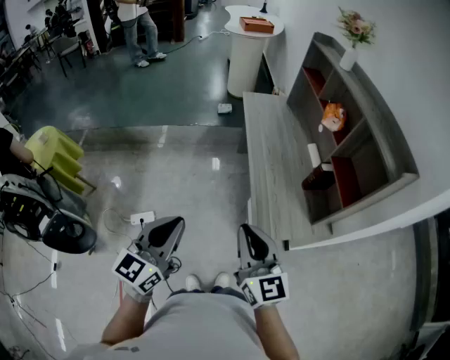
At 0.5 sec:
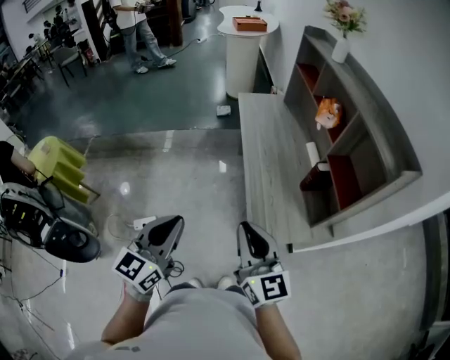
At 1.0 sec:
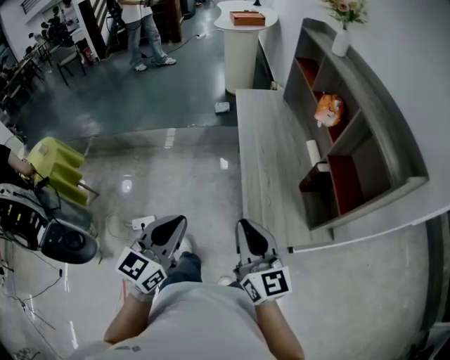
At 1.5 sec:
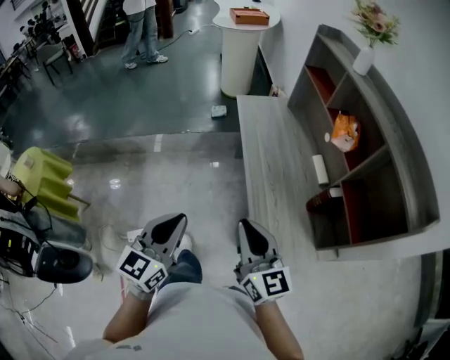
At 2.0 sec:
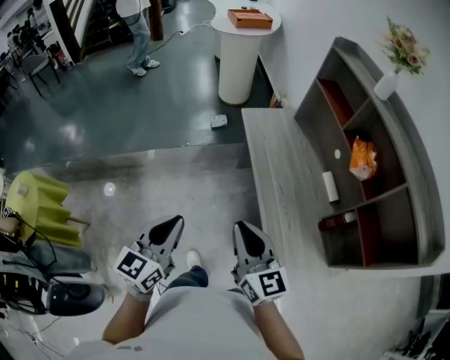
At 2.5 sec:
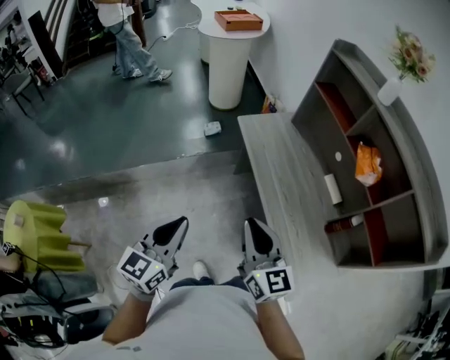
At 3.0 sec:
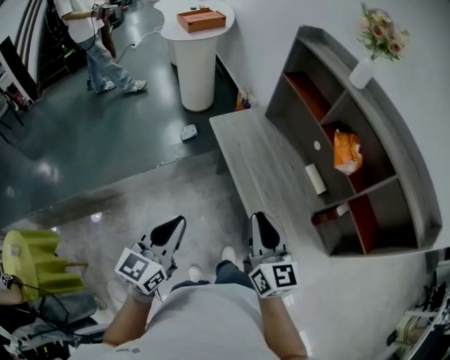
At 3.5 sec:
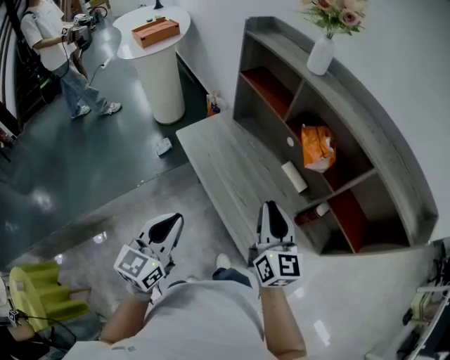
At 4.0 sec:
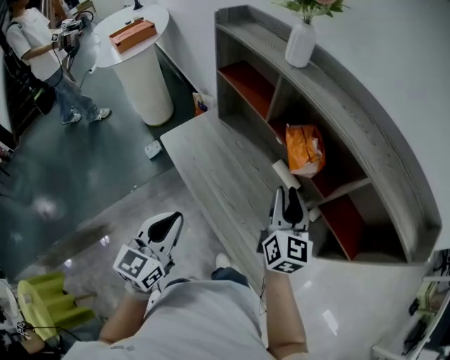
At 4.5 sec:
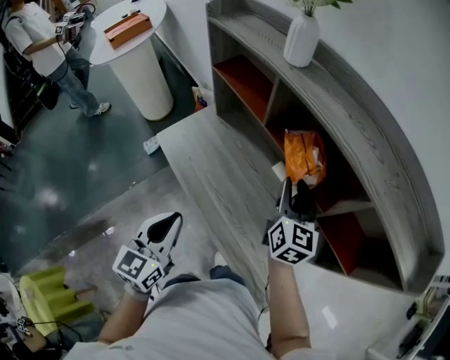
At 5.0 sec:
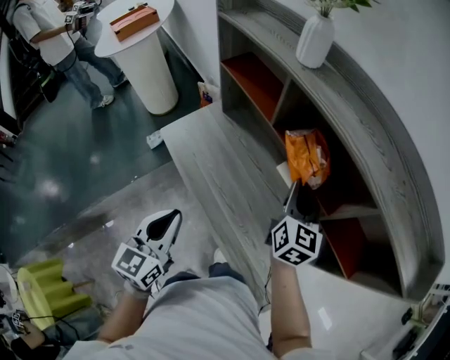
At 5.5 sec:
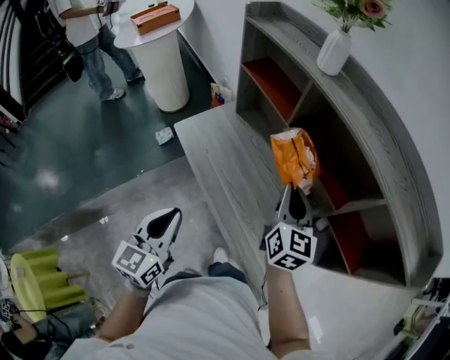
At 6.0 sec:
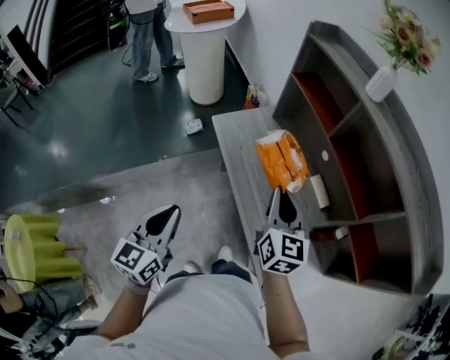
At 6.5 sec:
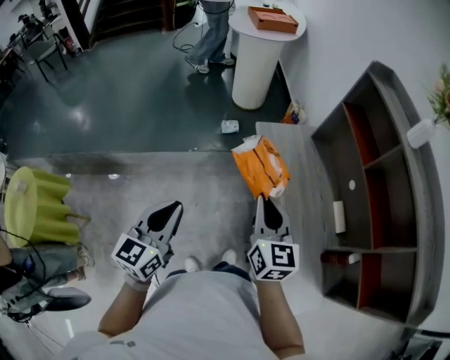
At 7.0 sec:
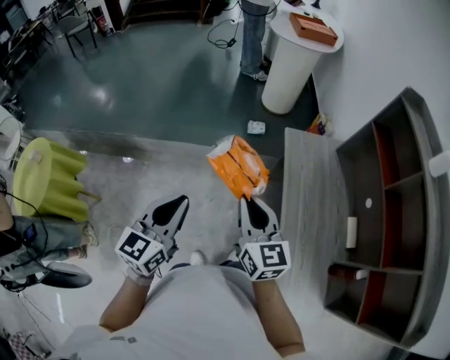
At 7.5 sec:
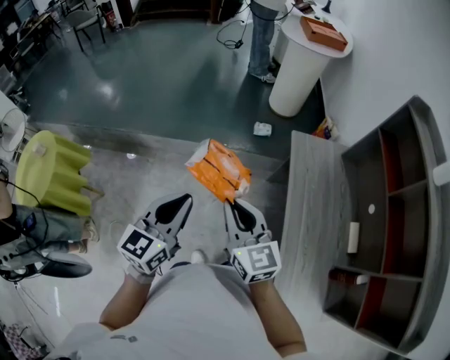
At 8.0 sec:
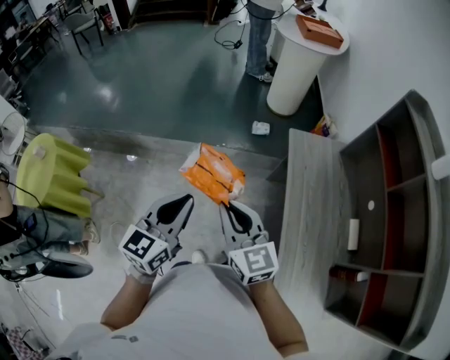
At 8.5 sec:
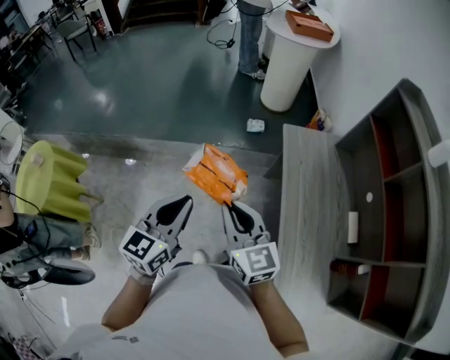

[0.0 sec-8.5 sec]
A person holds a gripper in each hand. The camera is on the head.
0.0 sec to 2.0 sec: The grippers both shift forward by about 35 cm.
2.0 sec to 4.0 sec: The left gripper shifts by about 35 cm, and rotates about 30 degrees. Meanwhile the right gripper shifts by some 40 cm, and swivels approximately 50 degrees.
4.0 sec to 6.5 sec: The right gripper shifts by about 35 cm, turns by about 40 degrees, and closes up. The left gripper changes place by some 30 cm, and rotates about 30 degrees.
6.5 sec to 8.5 sec: The right gripper heads to the left, covering about 15 cm, and turns by some 30 degrees.

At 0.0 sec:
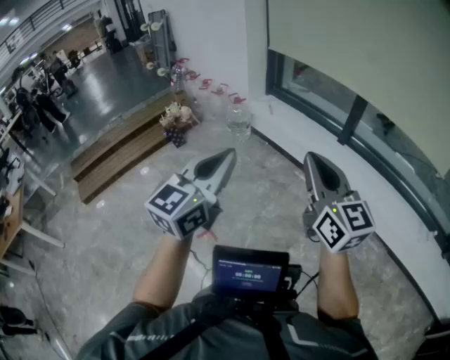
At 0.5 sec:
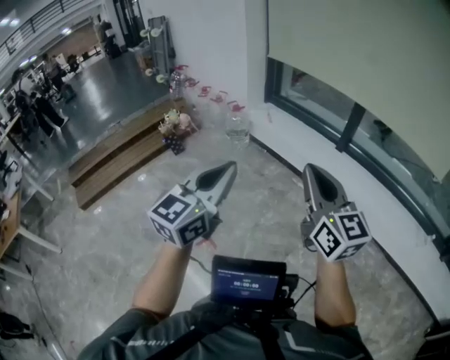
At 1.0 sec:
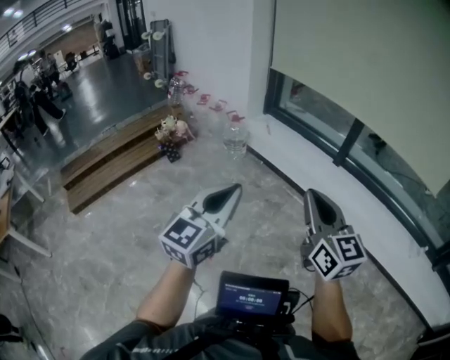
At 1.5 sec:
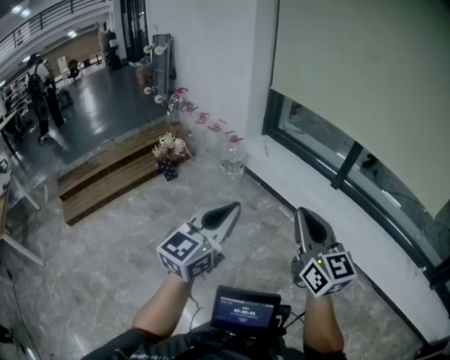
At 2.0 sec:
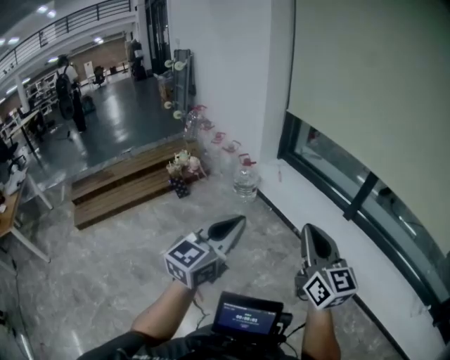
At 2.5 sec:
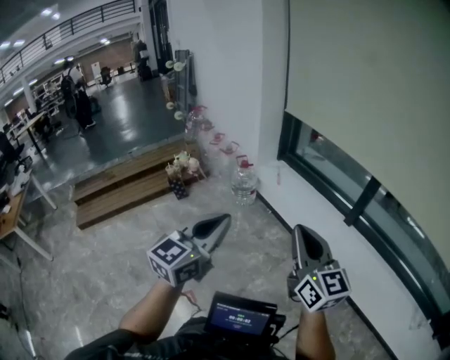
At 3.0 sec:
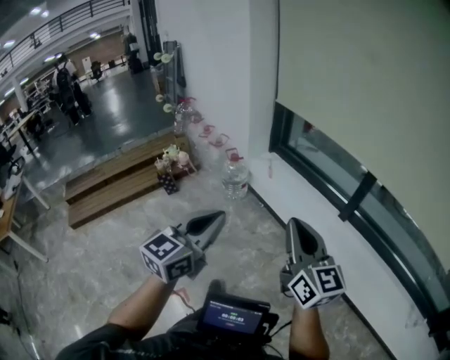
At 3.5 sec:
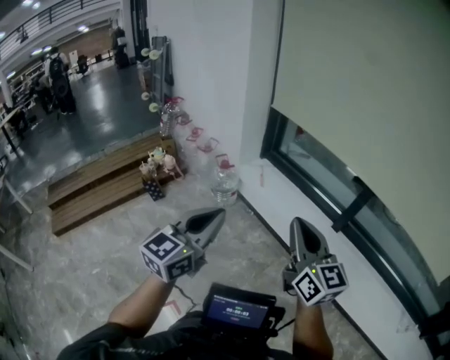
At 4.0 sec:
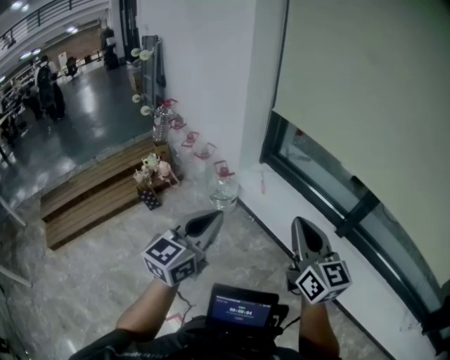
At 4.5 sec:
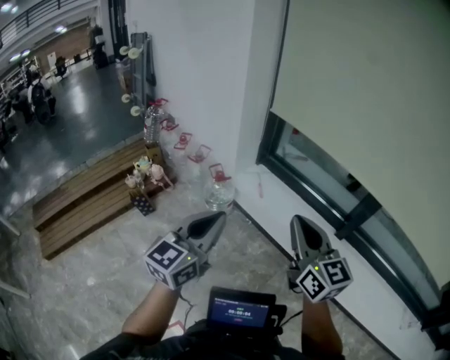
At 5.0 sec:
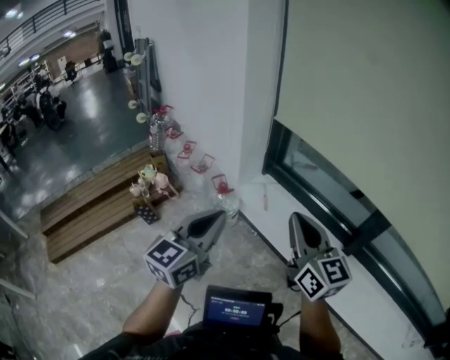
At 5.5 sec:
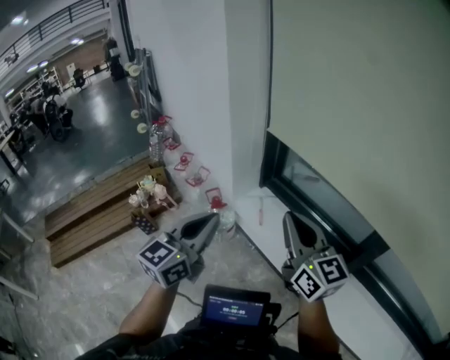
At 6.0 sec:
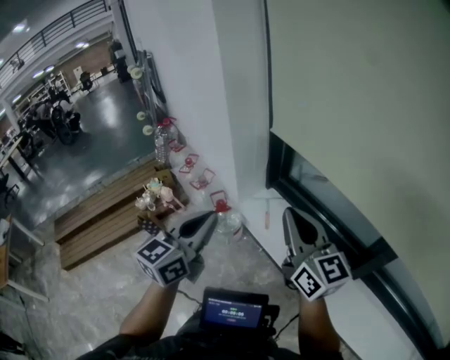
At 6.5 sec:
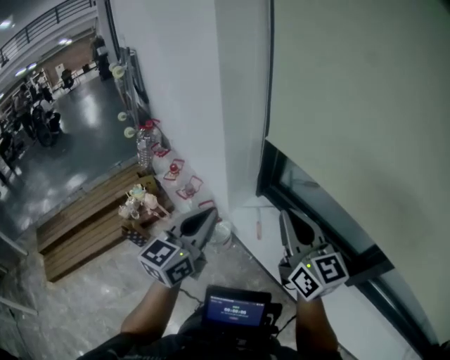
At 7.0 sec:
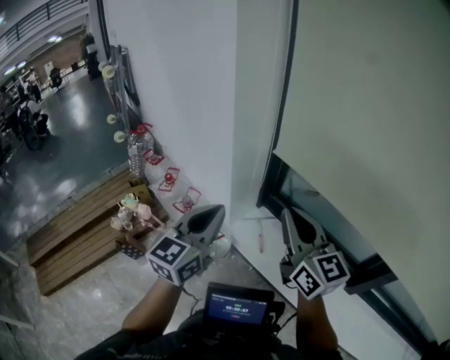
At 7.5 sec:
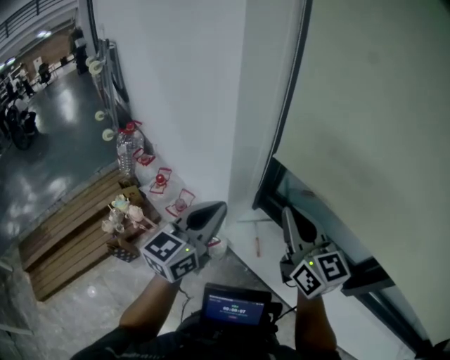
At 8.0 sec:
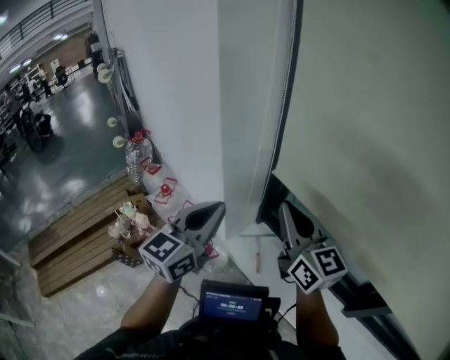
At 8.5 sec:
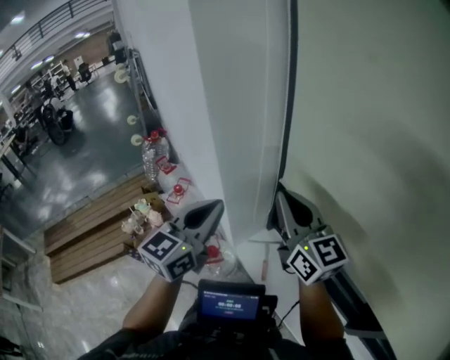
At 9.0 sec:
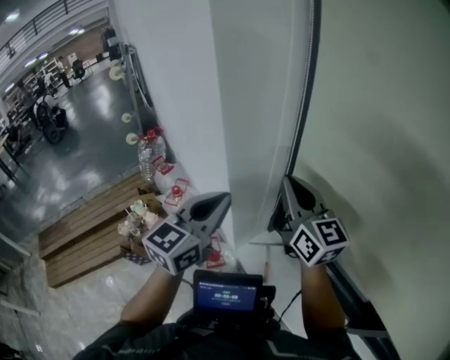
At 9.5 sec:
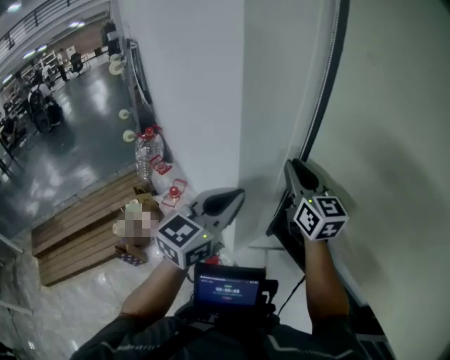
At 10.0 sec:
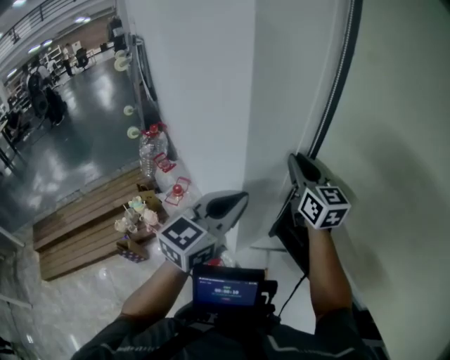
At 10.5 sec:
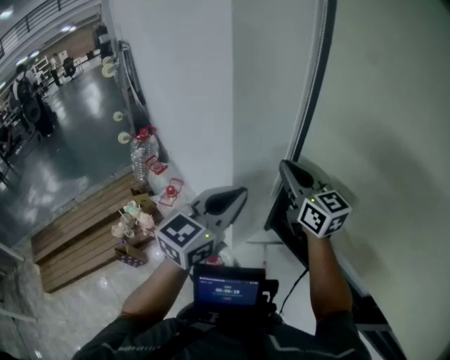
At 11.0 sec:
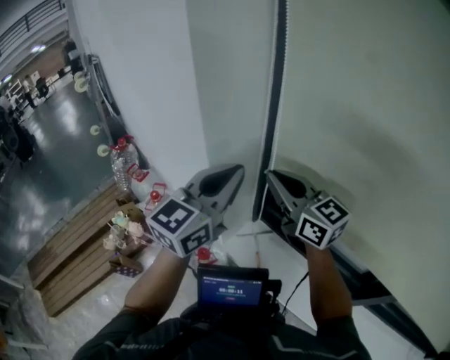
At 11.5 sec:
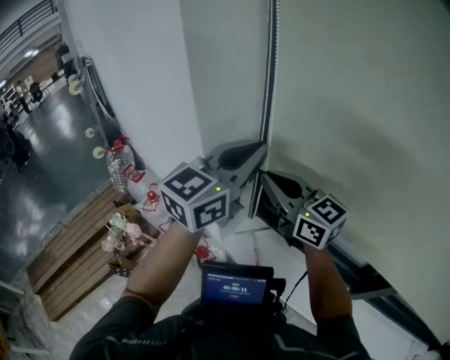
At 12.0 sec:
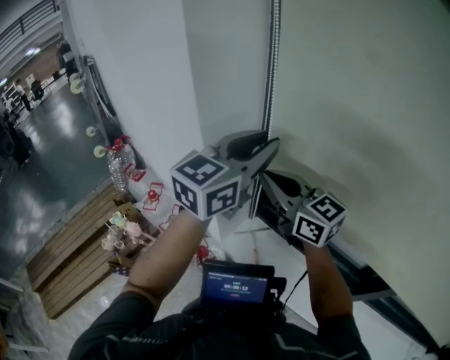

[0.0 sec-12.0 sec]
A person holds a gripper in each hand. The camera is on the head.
0.0 sec to 2.0 sec: The grippers both shift forward by approximately 10 cm.
2.0 sec to 4.0 sec: The two grippers go some 25 cm forward.
4.0 sec to 6.0 sec: Both grippers move forward, about 25 cm.
6.0 sec to 8.0 sec: Both grippers travel together forward, some 30 cm.
8.0 sec to 10.0 sec: The right gripper heads forward, covering about 25 cm, while the left gripper heads forward, covering some 10 cm.
10.0 sec to 12.0 sec: The left gripper travels to the right and upward by approximately 15 cm, and opens its fingers. The right gripper shifts roughly 15 cm backward.

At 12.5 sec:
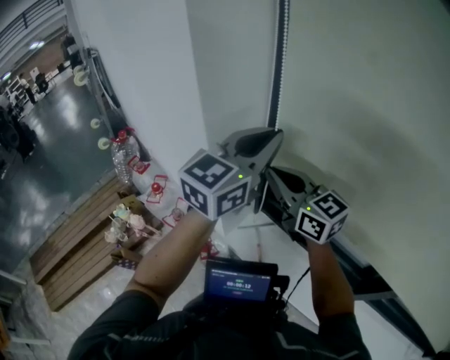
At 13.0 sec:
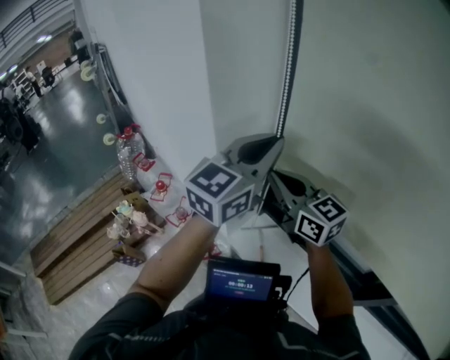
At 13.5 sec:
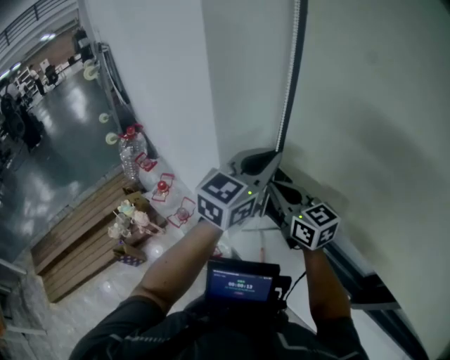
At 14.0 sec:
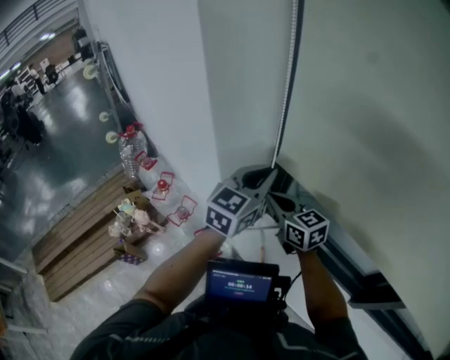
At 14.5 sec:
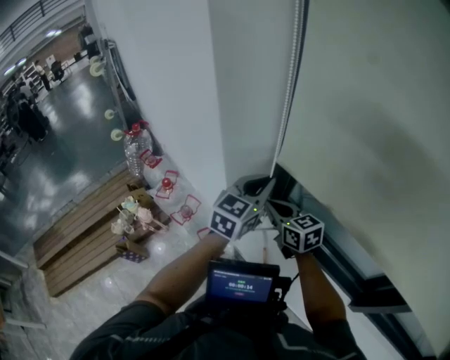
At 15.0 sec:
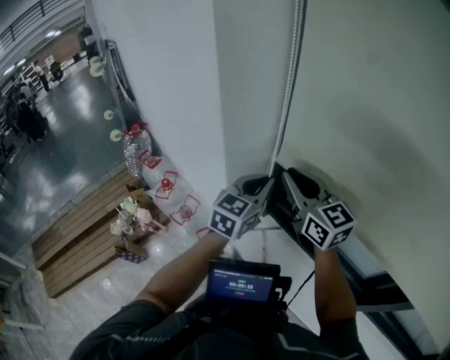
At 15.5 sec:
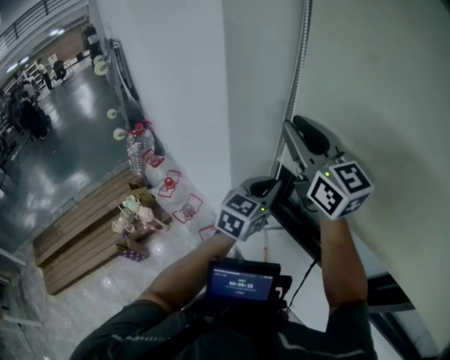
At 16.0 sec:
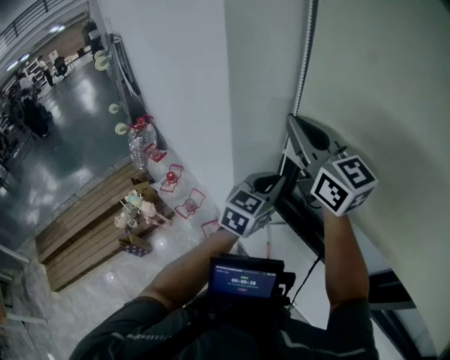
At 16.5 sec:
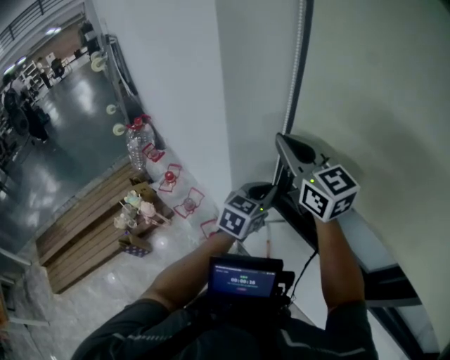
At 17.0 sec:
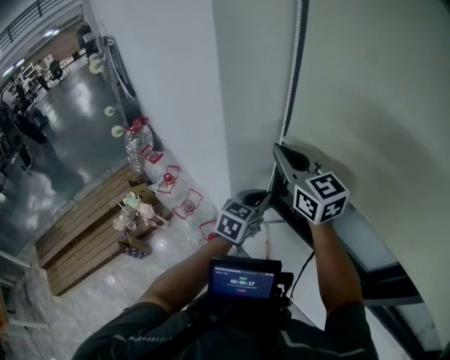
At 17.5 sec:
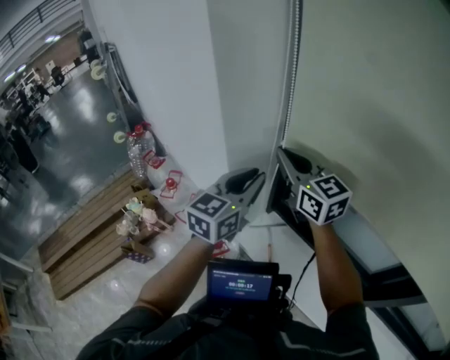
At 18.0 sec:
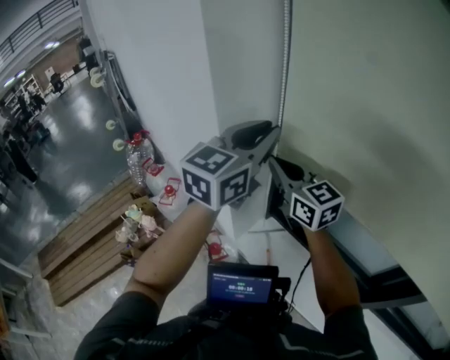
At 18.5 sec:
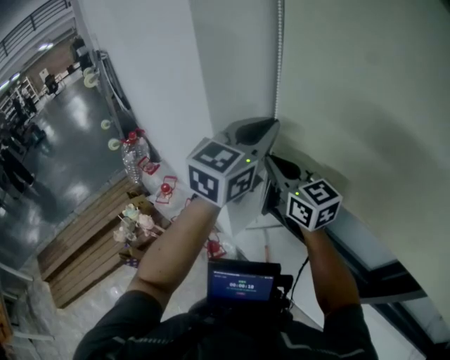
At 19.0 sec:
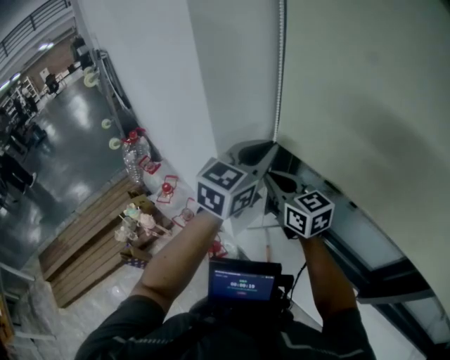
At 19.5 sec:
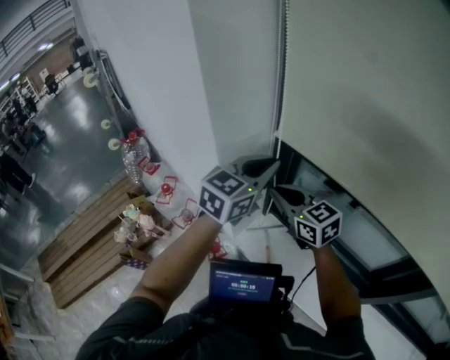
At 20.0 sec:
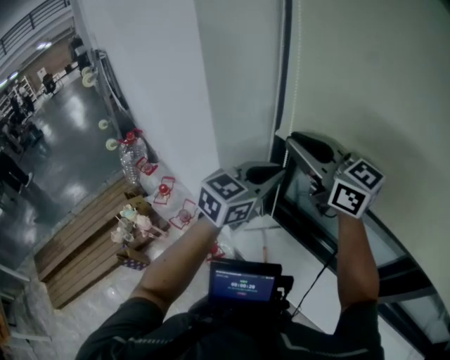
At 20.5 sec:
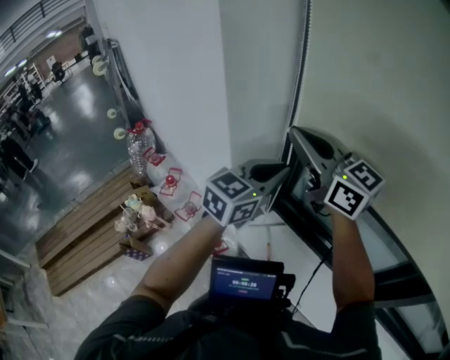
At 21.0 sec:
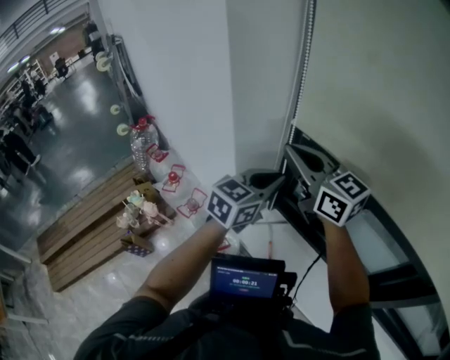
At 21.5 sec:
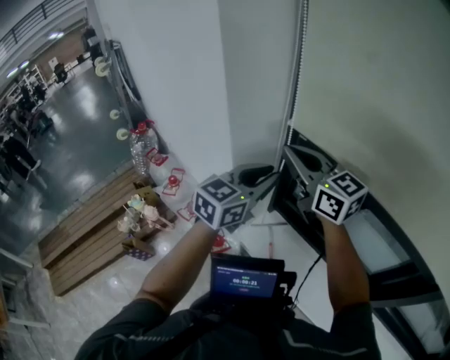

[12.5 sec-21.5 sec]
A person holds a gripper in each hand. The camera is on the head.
12.5 sec to 14.5 sec: Both grippers travel together downward, about 15 cm. The right gripper swivels roughly 20 degrees.
14.5 sec to 17.0 sec: The left gripper shifts approximately 10 cm downward. The right gripper travels upward by about 20 cm, turns by some 20 degrees, and opens and closes again.
17.0 sec to 19.5 sec: The left gripper travels upward by some 15 cm. Meanwhile the right gripper goes about 10 cm downward.
19.5 sec to 21.5 sec: The left gripper ends up approximately 5 cm from where it was. Meanwhile the right gripper heads upward, covering approximately 10 cm.
